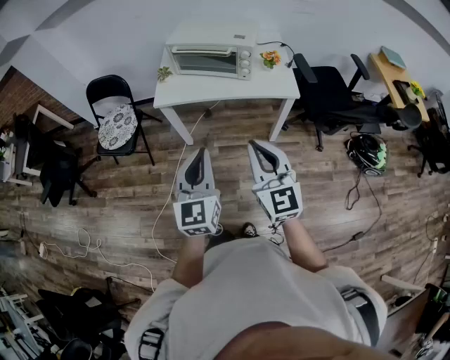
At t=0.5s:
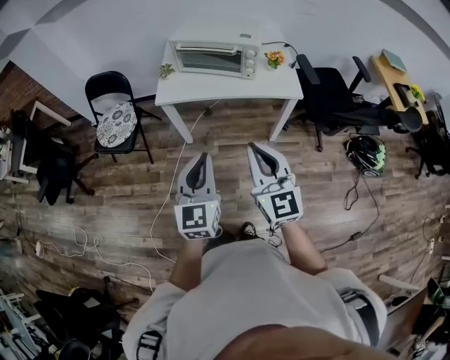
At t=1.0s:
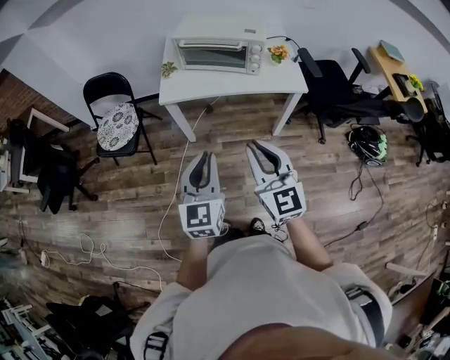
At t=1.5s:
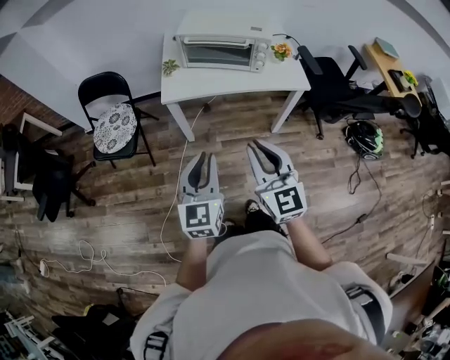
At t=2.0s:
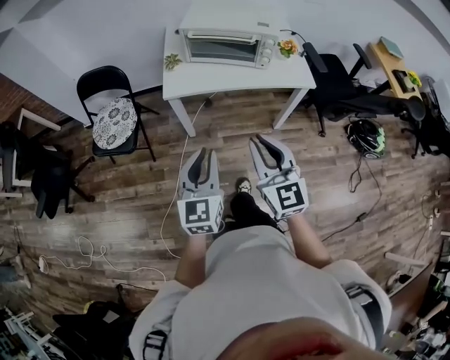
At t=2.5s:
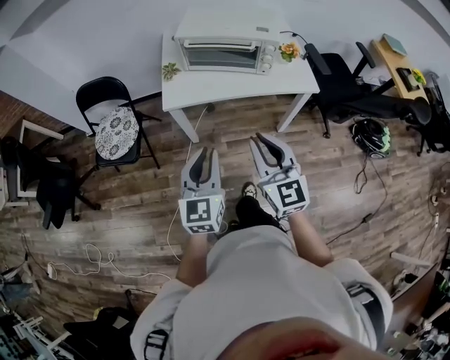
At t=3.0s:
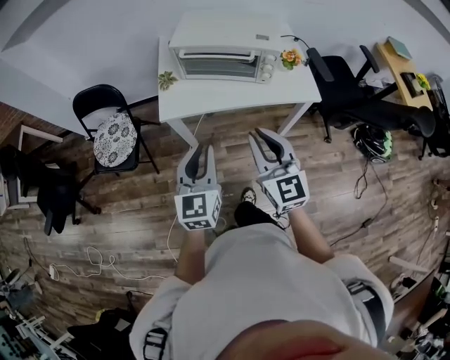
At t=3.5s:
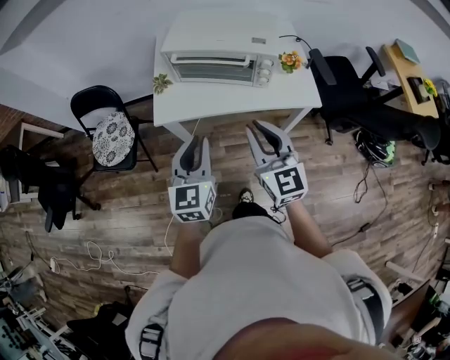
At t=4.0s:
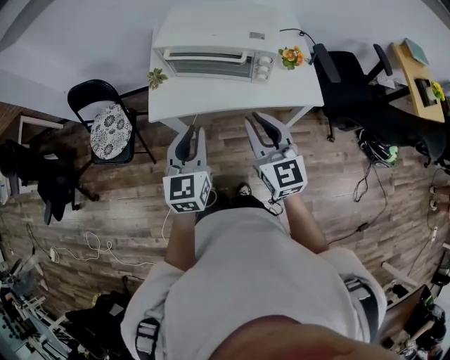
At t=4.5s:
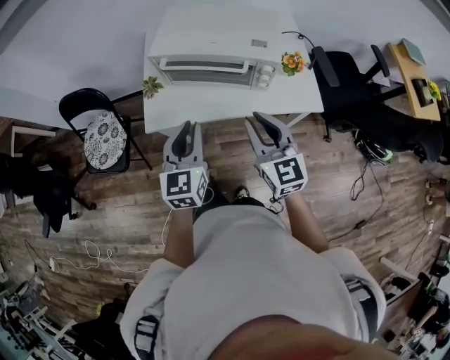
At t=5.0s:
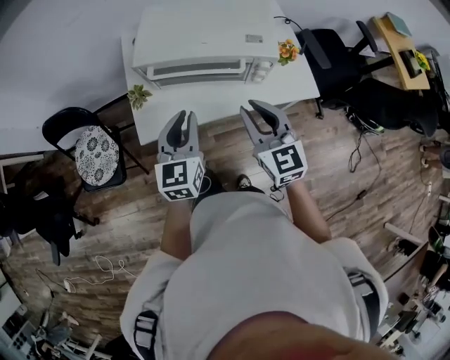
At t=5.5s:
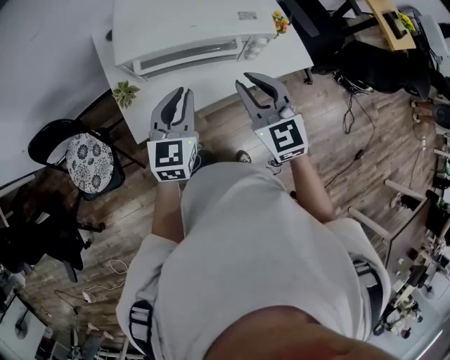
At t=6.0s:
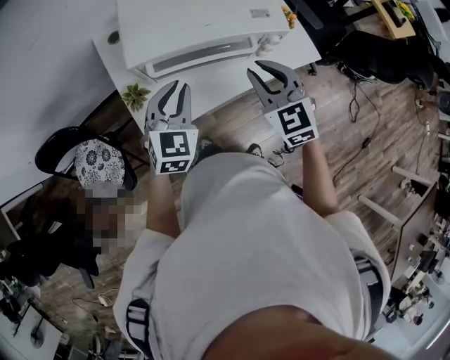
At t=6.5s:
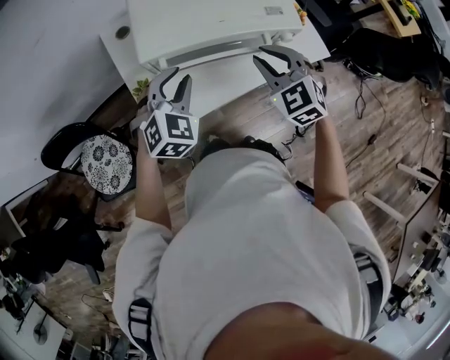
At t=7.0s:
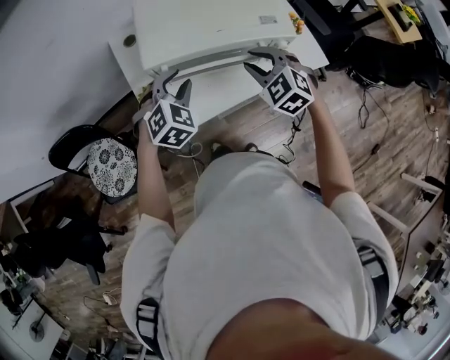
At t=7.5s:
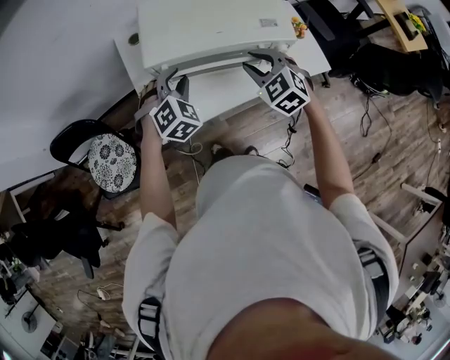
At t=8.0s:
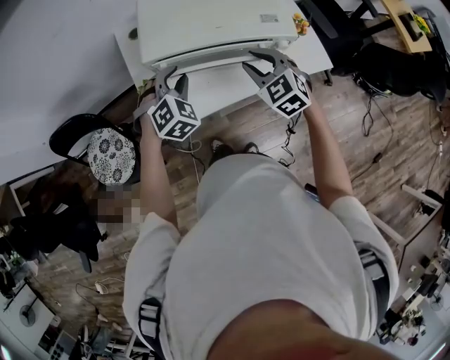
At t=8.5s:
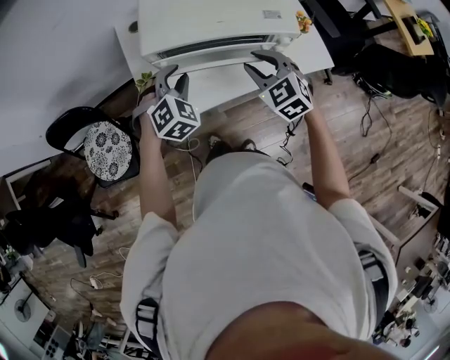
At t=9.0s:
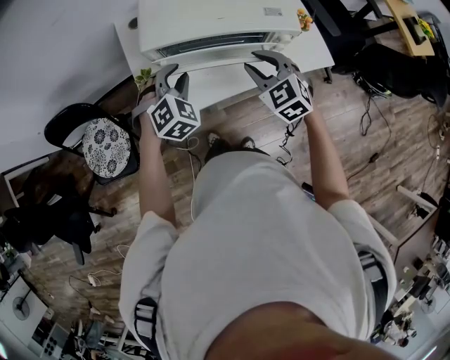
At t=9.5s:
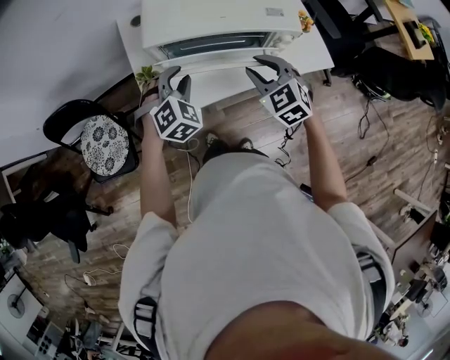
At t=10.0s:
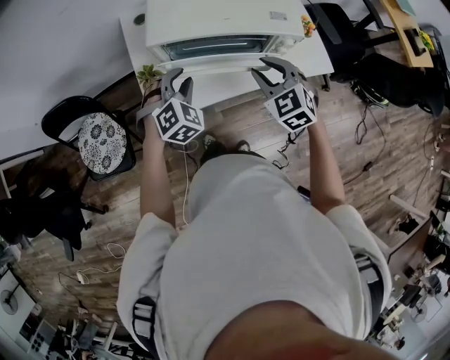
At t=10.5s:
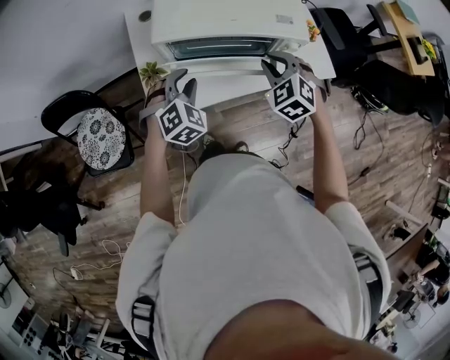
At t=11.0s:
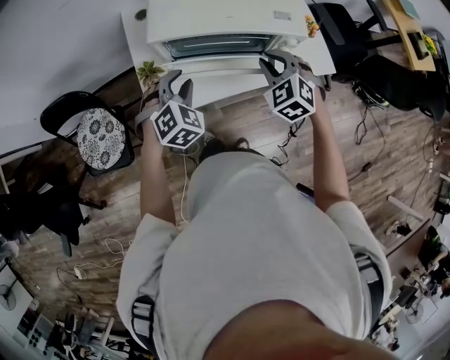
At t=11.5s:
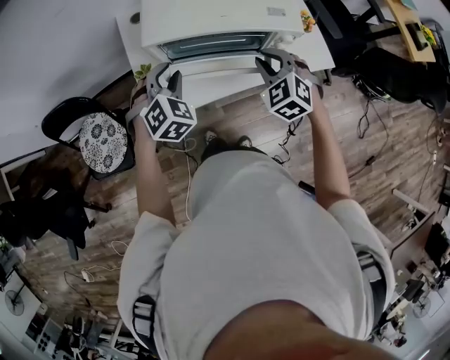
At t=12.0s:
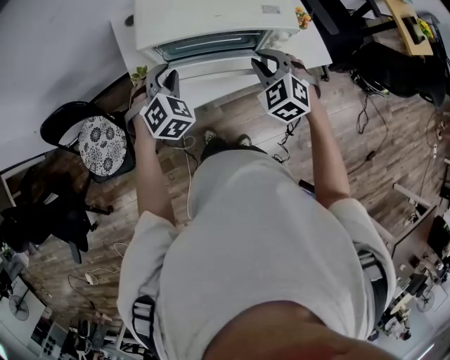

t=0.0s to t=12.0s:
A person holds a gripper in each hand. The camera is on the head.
t=0.0s to t=2.0s: The right gripper moves to the left, some 15 cm, while the left gripper heads to the left and downward, covering roughly 15 cm.
t=2.0s to t=4.0s: Both grippers move forward and to the right, roughly 25 cm.
t=4.0s to t=6.0s: The grippers both shift forward by approximately 20 cm. The right gripper turns by approximately 30 degrees, while the left gripper turns by roughly 40 degrees.
t=6.0s to t=8.0s: The right gripper changes place by some 5 cm. Meanwhile the left gripper moves some 5 cm, and changes its angle by approximately 30 degrees.
t=8.0s to t=12.0s: The grippers move only a little.

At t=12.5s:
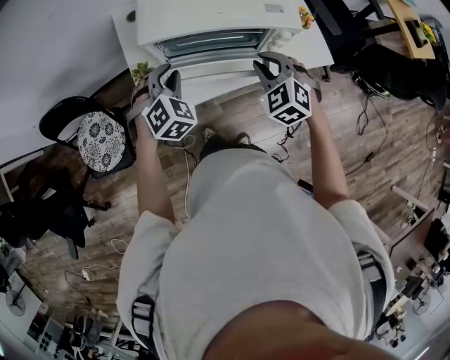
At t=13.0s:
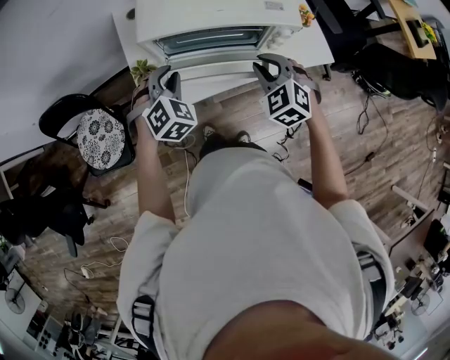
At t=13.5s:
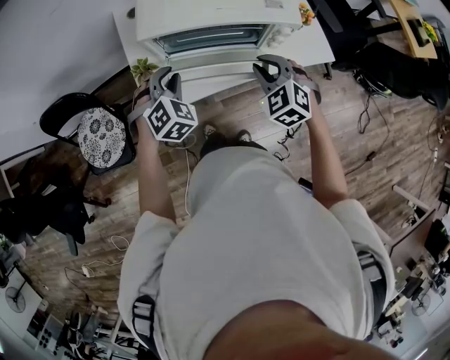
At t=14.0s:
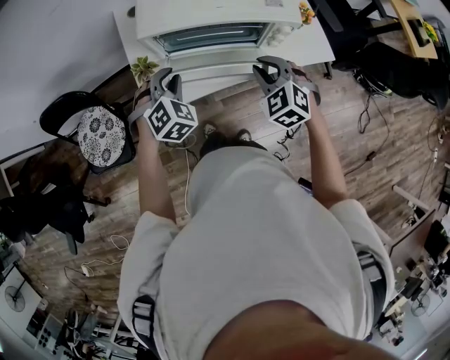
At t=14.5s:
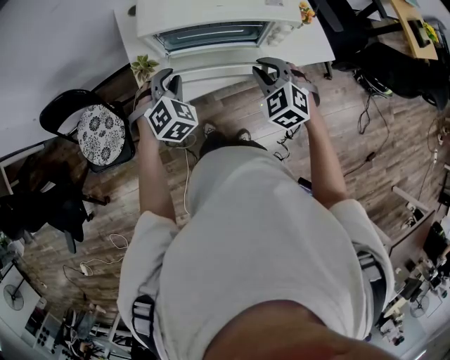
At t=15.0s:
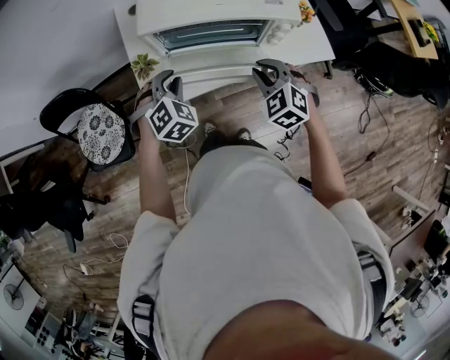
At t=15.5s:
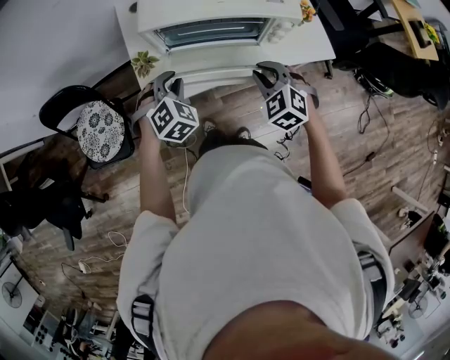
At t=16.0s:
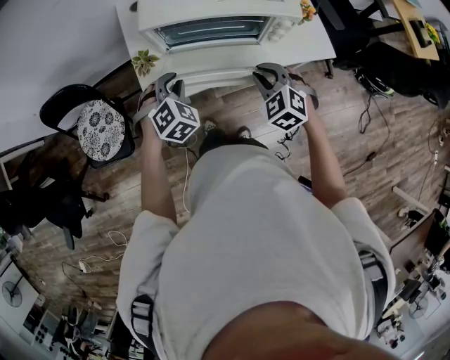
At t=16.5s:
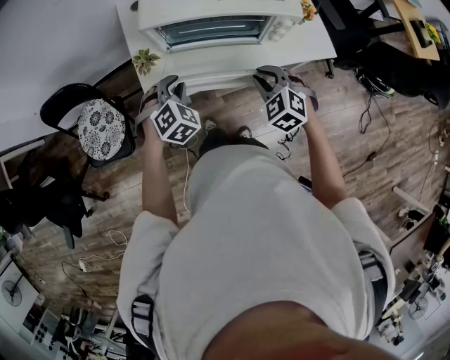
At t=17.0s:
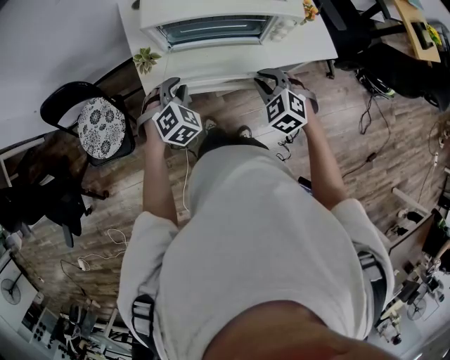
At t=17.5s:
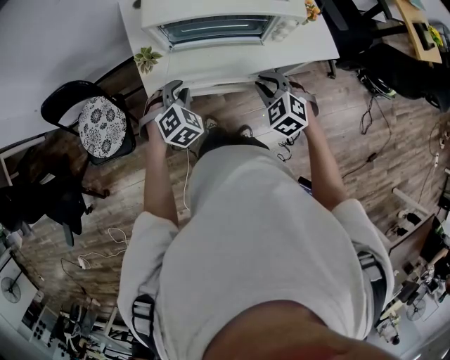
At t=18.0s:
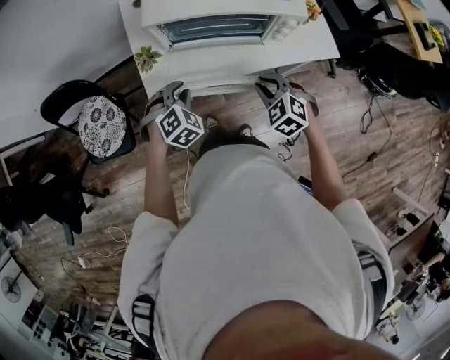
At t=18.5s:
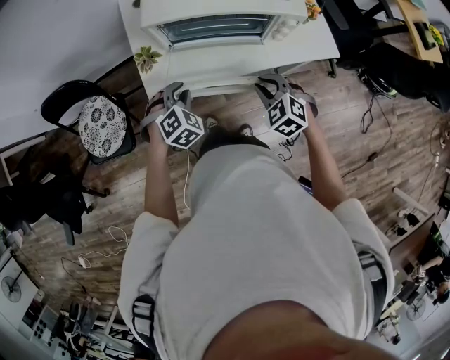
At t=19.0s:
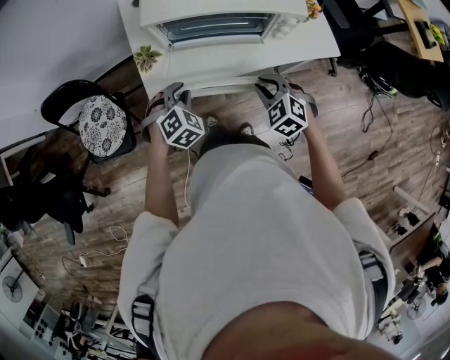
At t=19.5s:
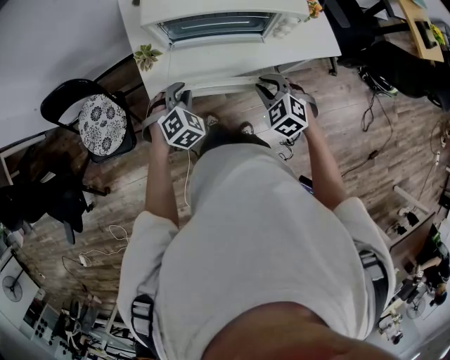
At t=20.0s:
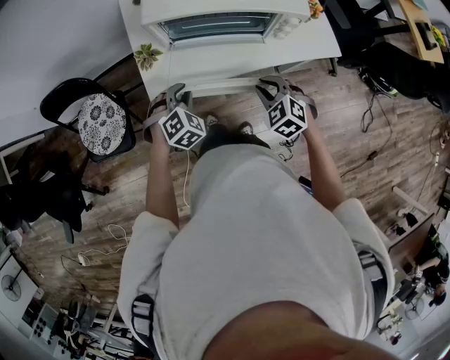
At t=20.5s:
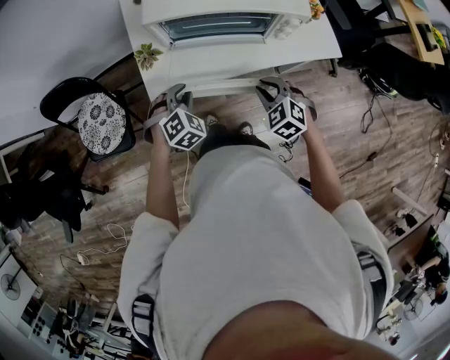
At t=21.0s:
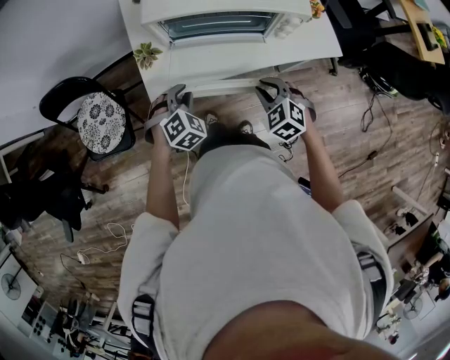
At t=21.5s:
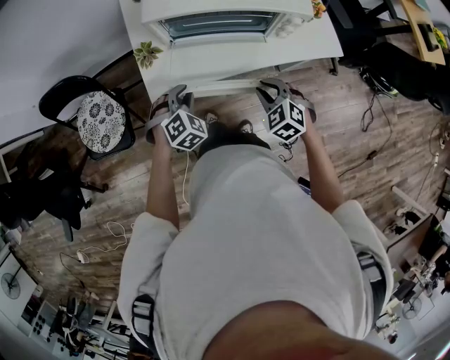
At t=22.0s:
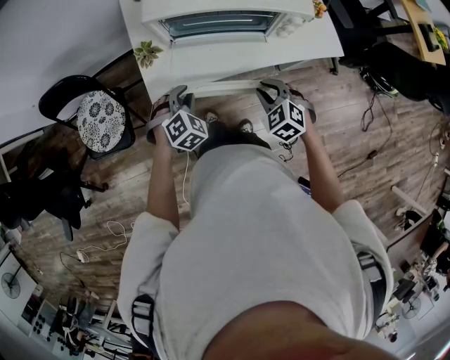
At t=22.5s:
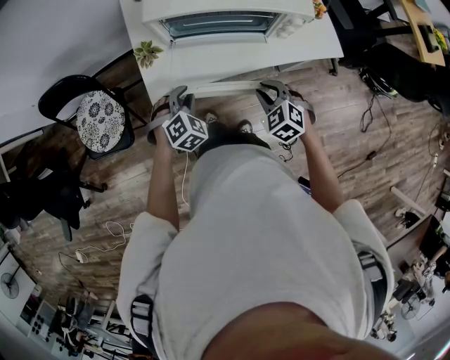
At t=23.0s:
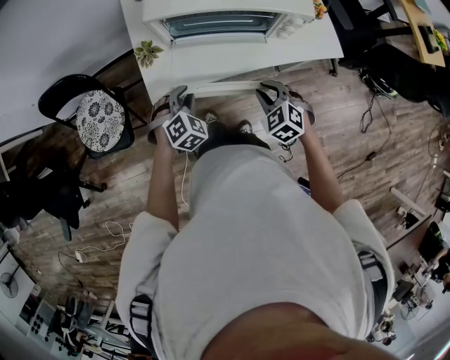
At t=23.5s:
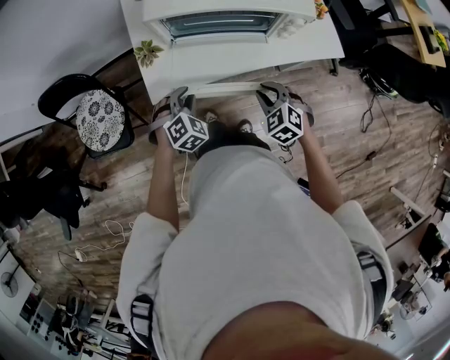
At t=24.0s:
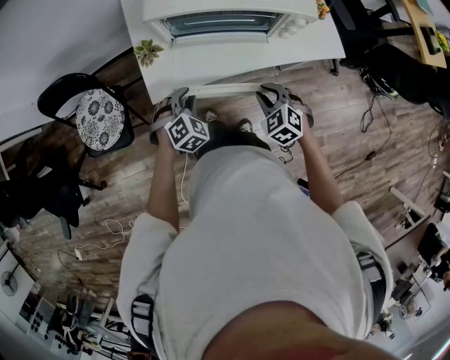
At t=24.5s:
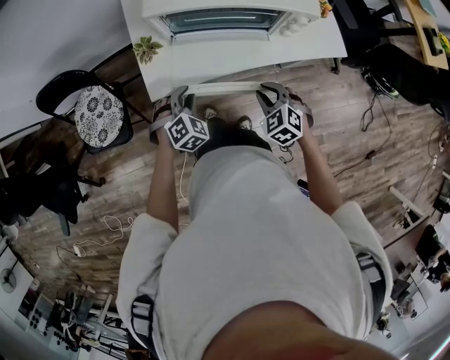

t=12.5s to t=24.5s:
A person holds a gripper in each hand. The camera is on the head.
t=12.5s to t=14.5s: The grippers stay close to where they were, moving slightly.
t=14.5s to t=16.5s: The left gripper moves about 5 cm.
t=16.5s to t=20.5s: There are only small adjustments of the grippers.
t=20.5s to t=24.5s: The grippers move only a little.

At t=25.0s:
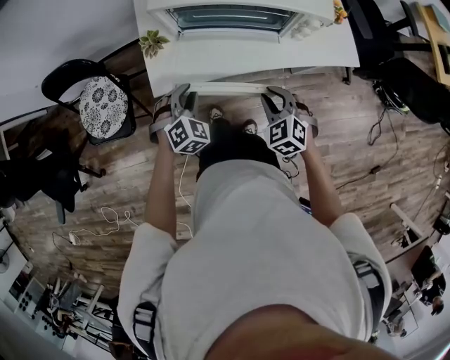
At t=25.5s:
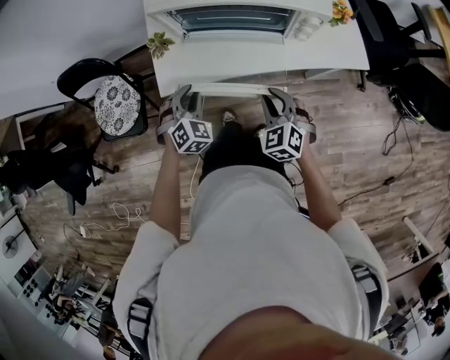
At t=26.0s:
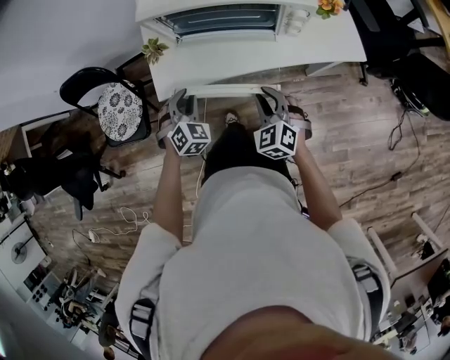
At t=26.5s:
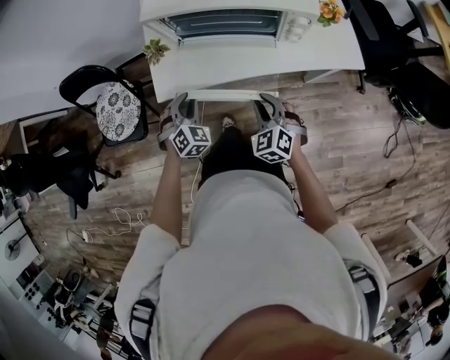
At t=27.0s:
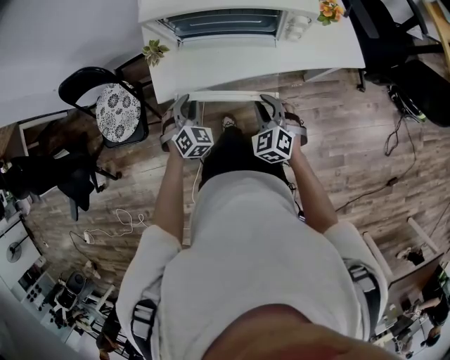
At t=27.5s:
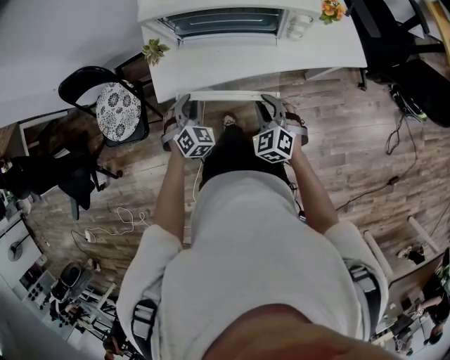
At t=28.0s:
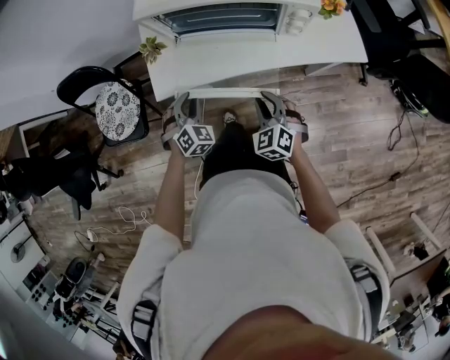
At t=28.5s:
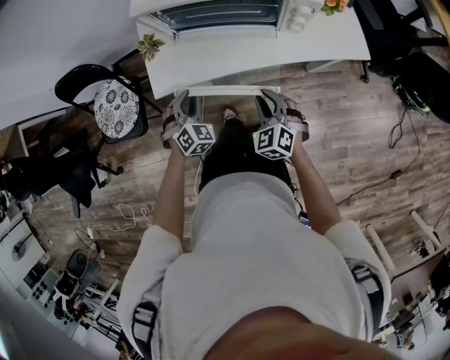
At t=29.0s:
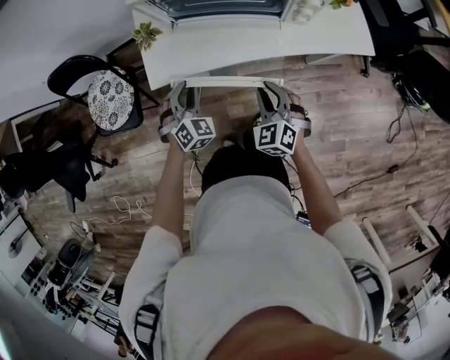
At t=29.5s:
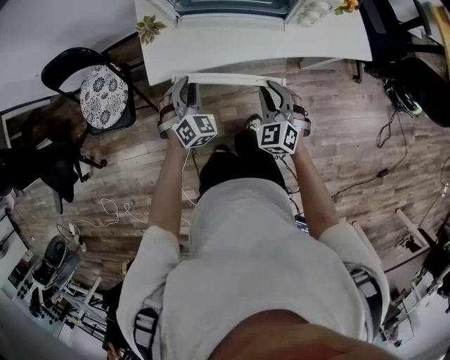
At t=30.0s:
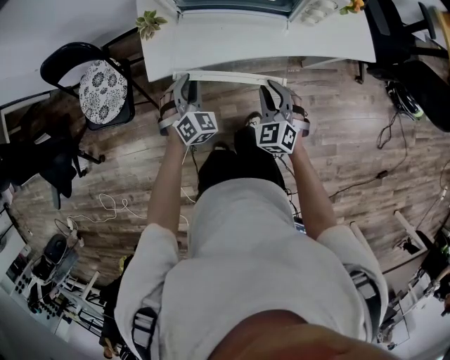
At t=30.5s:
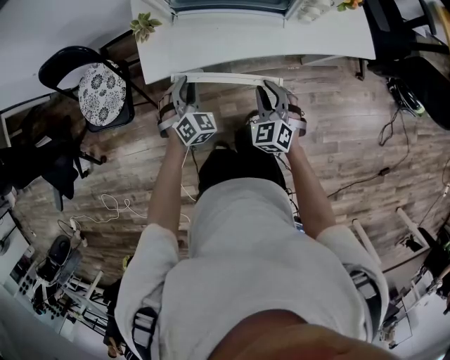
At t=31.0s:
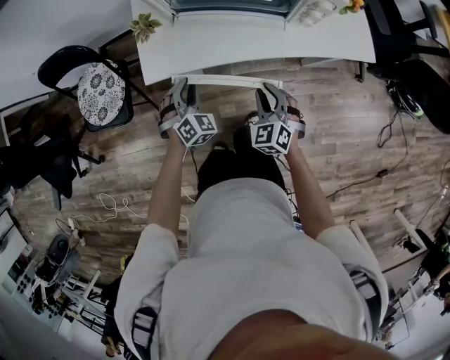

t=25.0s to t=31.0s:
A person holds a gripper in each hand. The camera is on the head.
t=25.0s to t=29.0s: The grippers stay close to where they were, moving slightly.
t=29.0s to t=31.0s: There are only small adjustments of the grippers.
